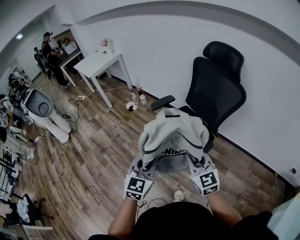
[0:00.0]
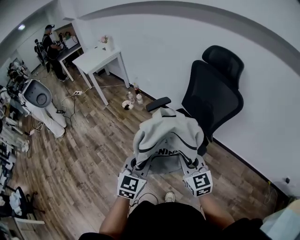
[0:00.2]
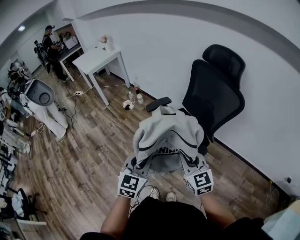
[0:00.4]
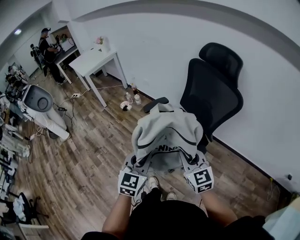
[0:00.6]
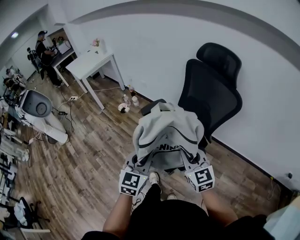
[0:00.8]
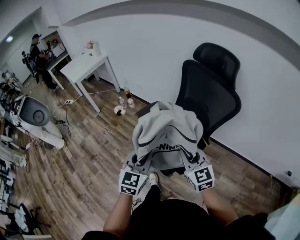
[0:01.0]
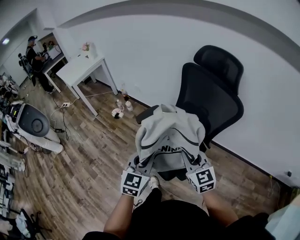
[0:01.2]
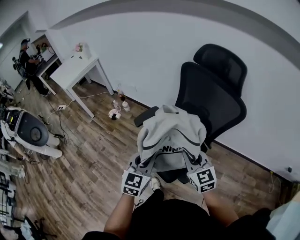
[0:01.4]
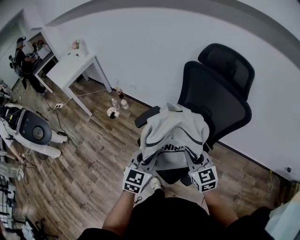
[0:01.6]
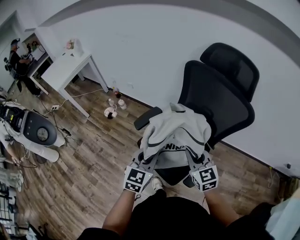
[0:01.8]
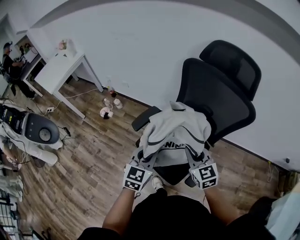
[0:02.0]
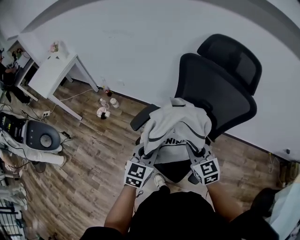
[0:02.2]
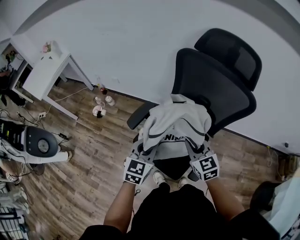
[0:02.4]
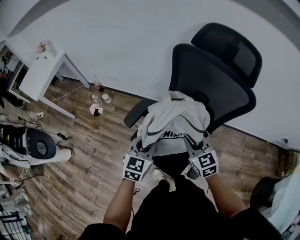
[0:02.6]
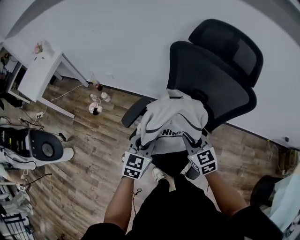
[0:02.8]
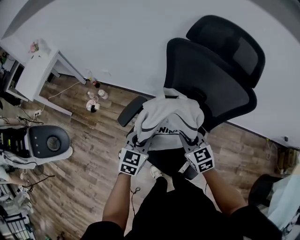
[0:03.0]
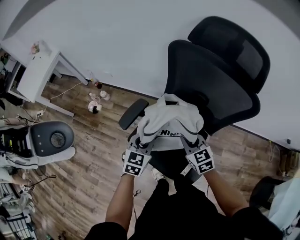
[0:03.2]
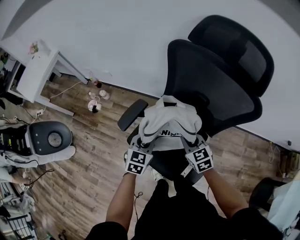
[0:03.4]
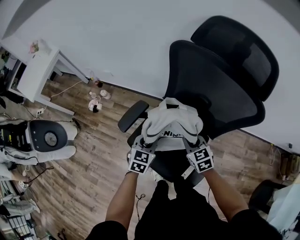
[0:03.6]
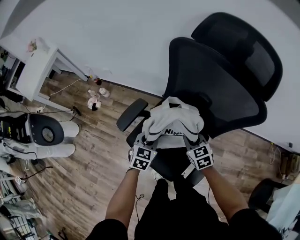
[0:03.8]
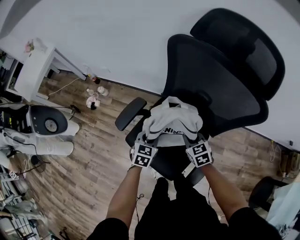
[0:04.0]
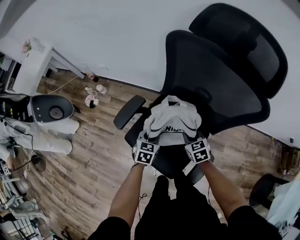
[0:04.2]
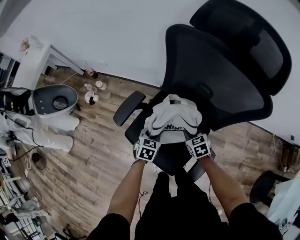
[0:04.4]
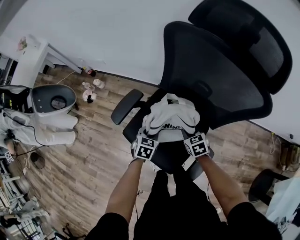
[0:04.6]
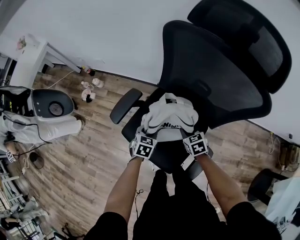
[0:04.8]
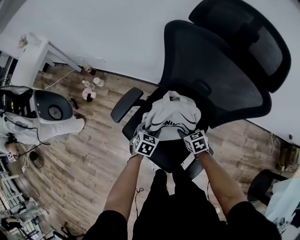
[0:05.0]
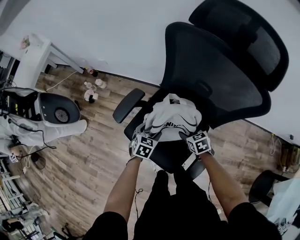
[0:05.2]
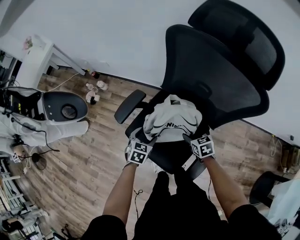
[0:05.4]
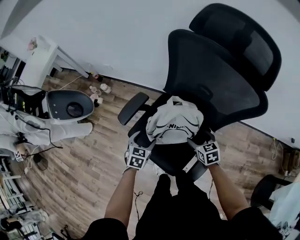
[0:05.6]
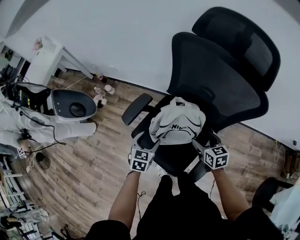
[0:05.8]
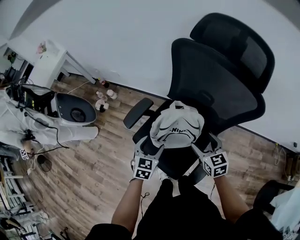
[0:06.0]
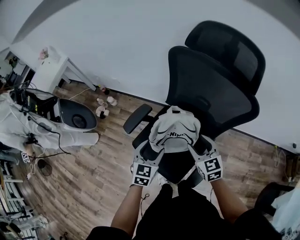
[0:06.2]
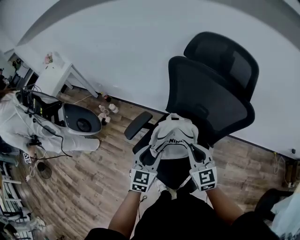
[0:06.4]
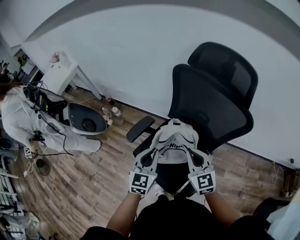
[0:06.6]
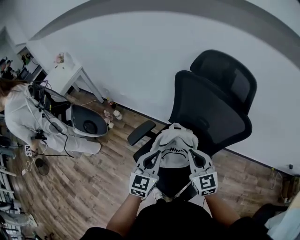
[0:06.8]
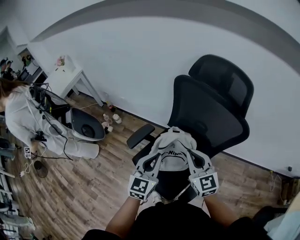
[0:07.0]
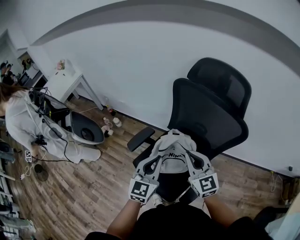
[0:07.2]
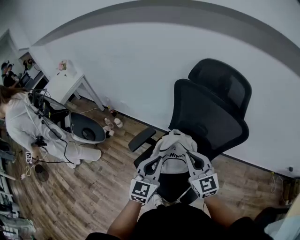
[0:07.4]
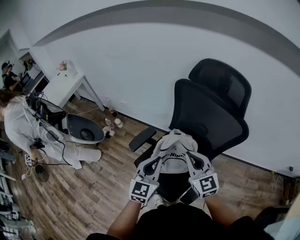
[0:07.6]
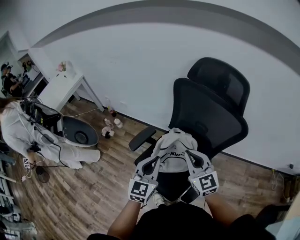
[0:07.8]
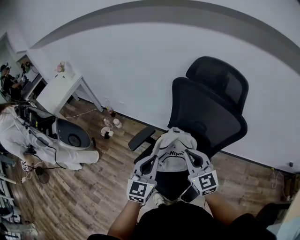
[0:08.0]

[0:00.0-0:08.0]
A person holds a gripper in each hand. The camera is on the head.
0:00.0 to 0:01.6: Both grippers travel together forward, about 25 cm.
0:01.6 to 0:03.2: Both grippers move forward and downward, some 20 cm.
0:03.2 to 0:04.8: The grippers both shift downward by roughly 15 cm. The right gripper rotates some 20 degrees.
0:04.8 to 0:06.4: The two grippers go some 25 cm upward. The left gripper turns by roughly 30 degrees, and opens, then closes again; the right gripper angles its fingers upward, by roughly 30 degrees, and opens and closes again.
0:06.4 to 0:08.0: Both grippers move upward, approximately 10 cm. The left gripper closes up.

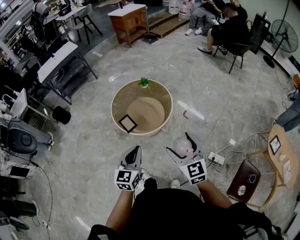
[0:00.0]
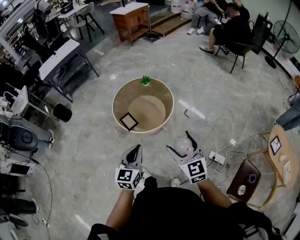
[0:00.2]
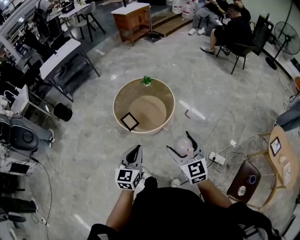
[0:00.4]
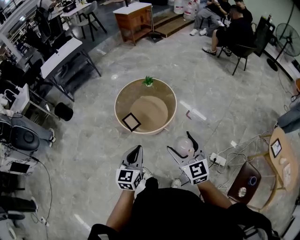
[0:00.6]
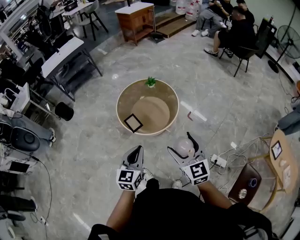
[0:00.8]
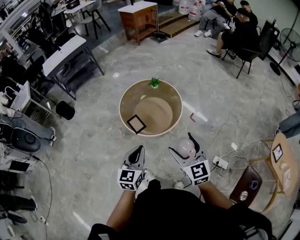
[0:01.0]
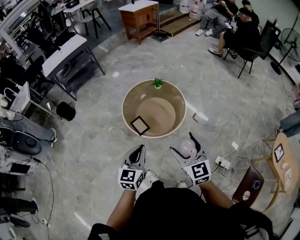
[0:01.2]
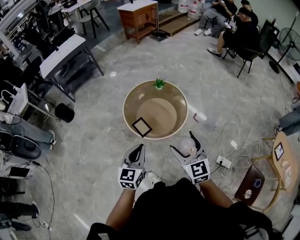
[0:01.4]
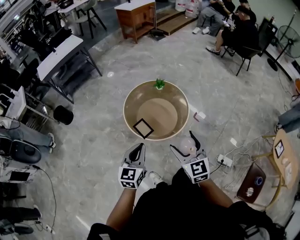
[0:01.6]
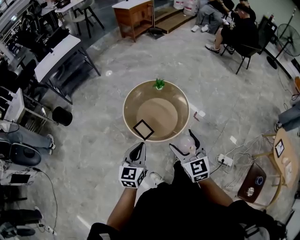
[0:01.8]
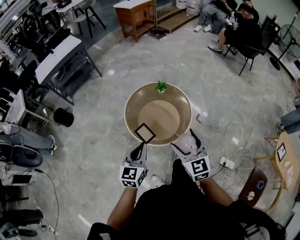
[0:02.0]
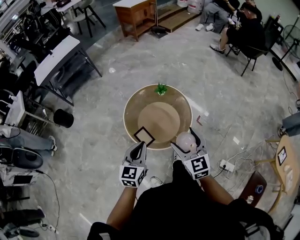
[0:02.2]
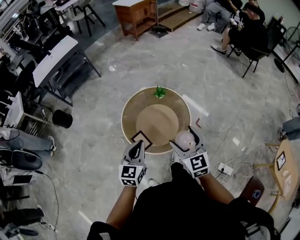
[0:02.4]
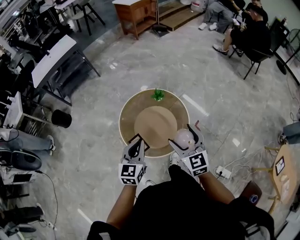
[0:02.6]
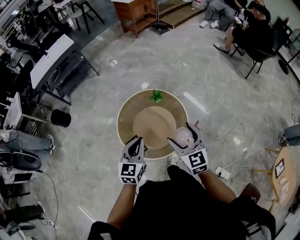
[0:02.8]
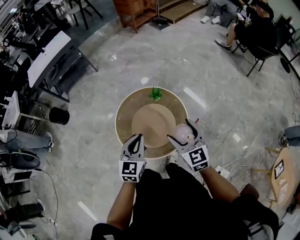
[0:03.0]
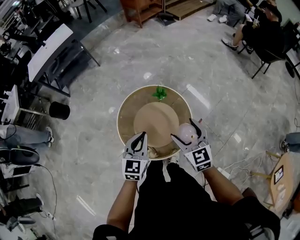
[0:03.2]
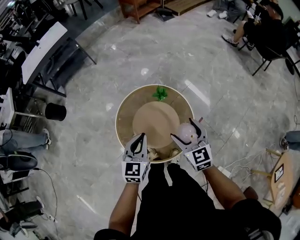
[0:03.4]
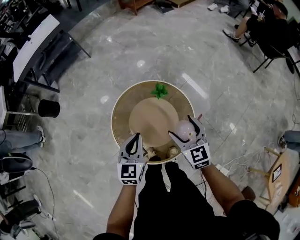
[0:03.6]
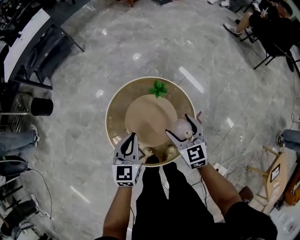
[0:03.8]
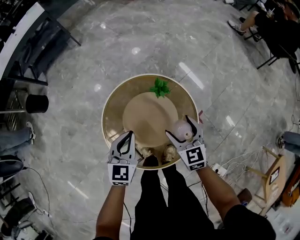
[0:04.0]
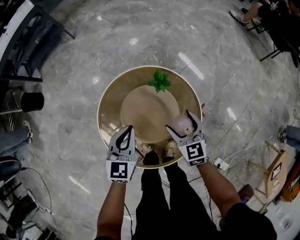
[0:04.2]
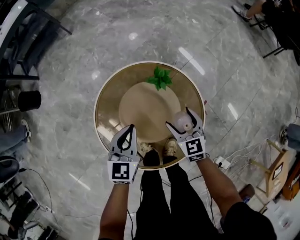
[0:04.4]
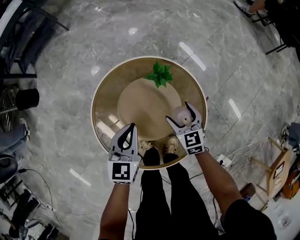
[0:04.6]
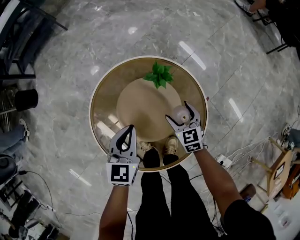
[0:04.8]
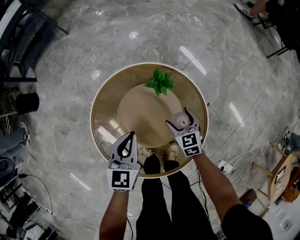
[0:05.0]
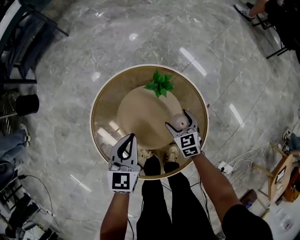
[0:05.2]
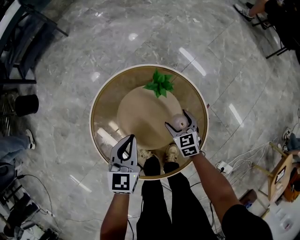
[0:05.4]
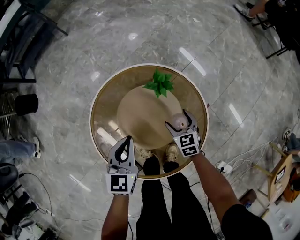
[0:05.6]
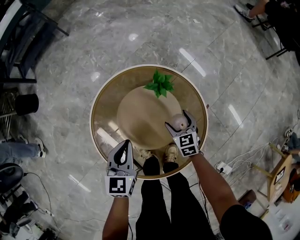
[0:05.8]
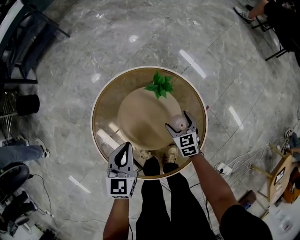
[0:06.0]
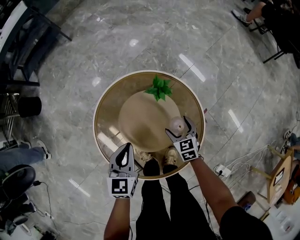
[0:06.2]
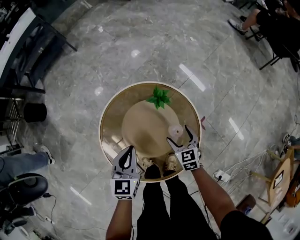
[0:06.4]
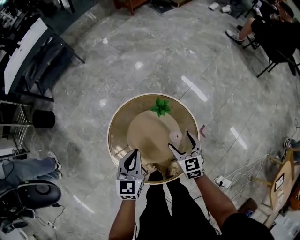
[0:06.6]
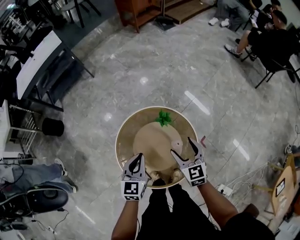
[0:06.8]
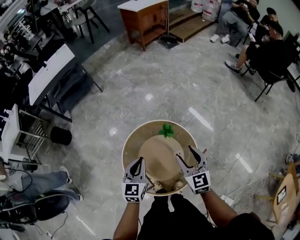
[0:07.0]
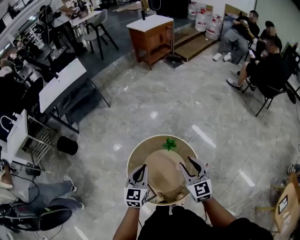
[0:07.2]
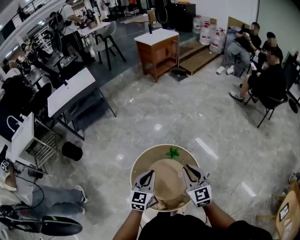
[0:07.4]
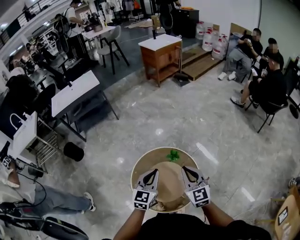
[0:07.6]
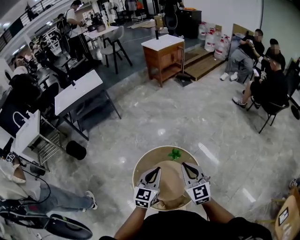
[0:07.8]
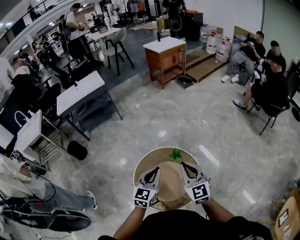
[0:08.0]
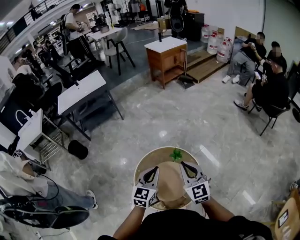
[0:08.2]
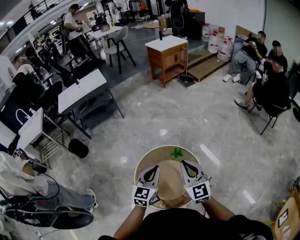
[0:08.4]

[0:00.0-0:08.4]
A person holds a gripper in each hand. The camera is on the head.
0:00.0 to 0:01.4: The two grippers go approximately 15 cm to the left and forward.
0:01.4 to 0:02.8: The grippers both shift forward by about 25 cm.
0:02.8 to 0:04.2: The grippers both shift downward and forward by about 30 cm.
0:04.2 to 0:05.6: The left gripper heads downward, covering approximately 10 cm. Meanwhile the right gripper moves downward, roughly 20 cm.
0:05.6 to 0:07.0: The left gripper is displaced upward by roughly 20 cm. Meanwhile the right gripper travels upward by about 40 cm, rotates approximately 30 degrees, and closes its fingers.
0:07.0 to 0:08.4: The grippers both shift upward by about 15 cm. The right gripper closes up.

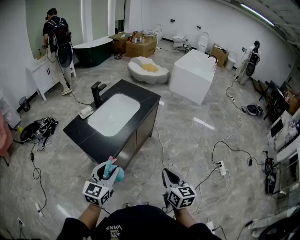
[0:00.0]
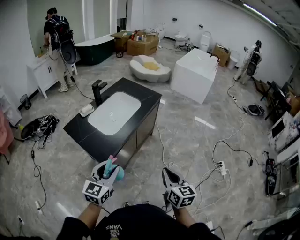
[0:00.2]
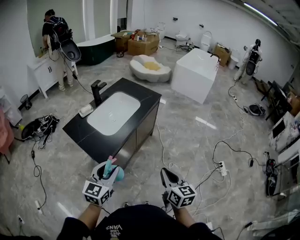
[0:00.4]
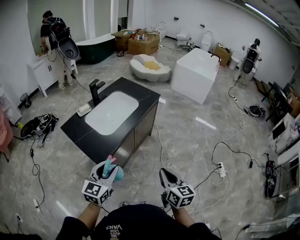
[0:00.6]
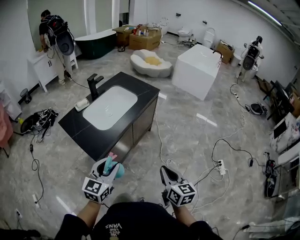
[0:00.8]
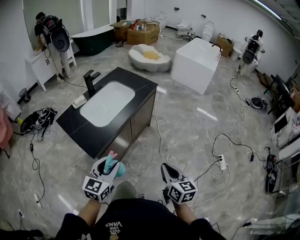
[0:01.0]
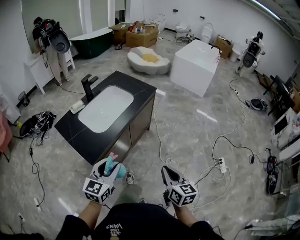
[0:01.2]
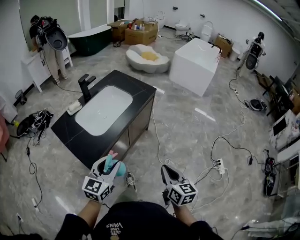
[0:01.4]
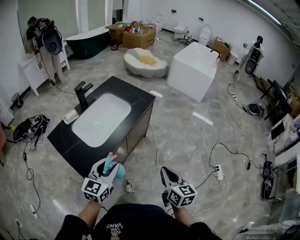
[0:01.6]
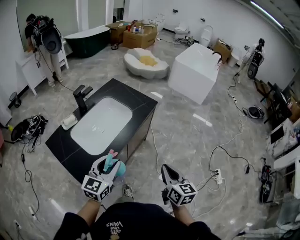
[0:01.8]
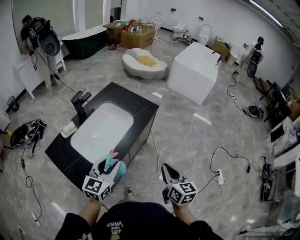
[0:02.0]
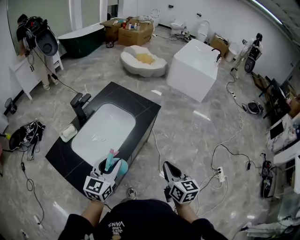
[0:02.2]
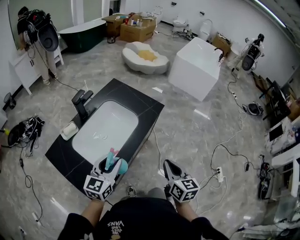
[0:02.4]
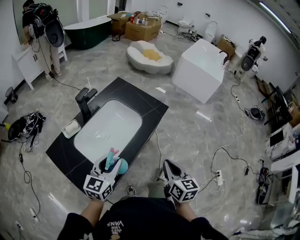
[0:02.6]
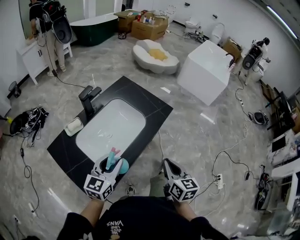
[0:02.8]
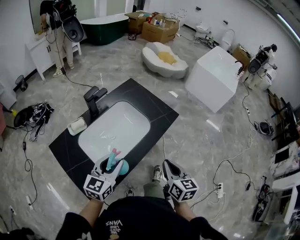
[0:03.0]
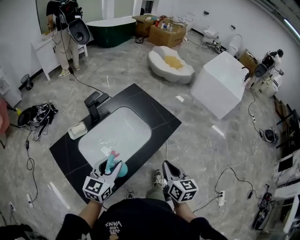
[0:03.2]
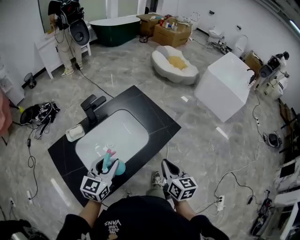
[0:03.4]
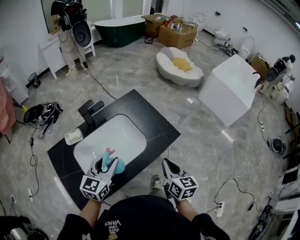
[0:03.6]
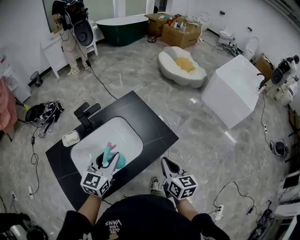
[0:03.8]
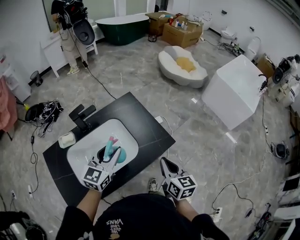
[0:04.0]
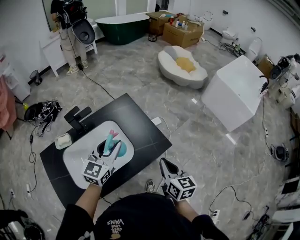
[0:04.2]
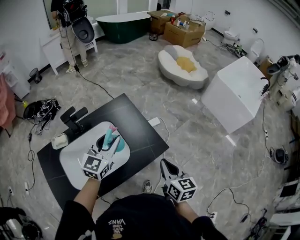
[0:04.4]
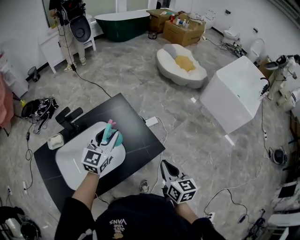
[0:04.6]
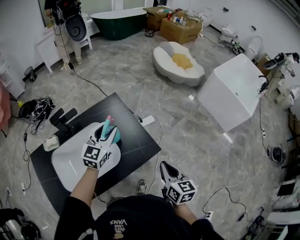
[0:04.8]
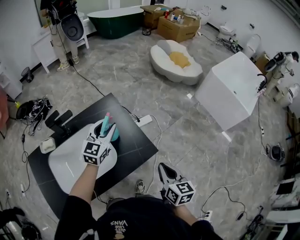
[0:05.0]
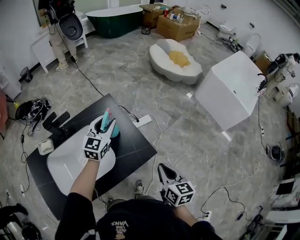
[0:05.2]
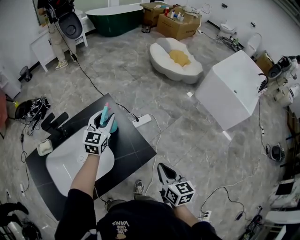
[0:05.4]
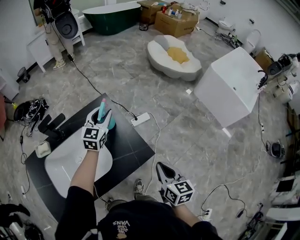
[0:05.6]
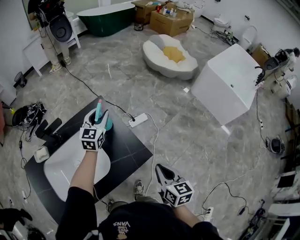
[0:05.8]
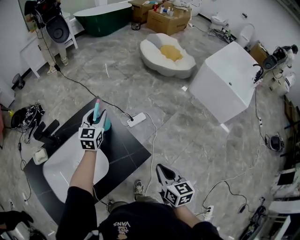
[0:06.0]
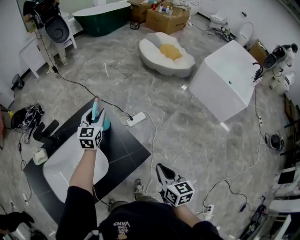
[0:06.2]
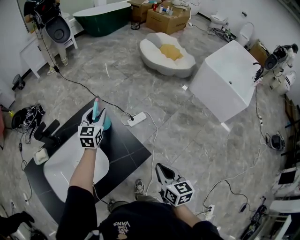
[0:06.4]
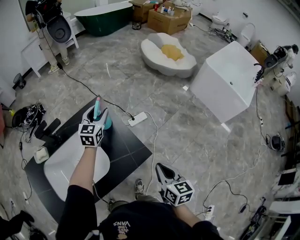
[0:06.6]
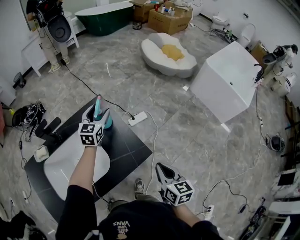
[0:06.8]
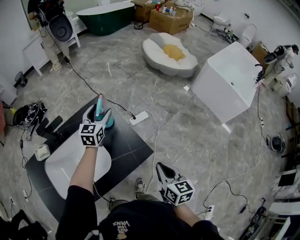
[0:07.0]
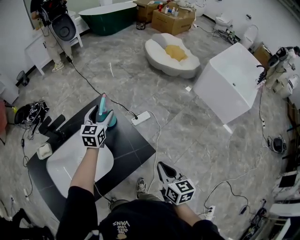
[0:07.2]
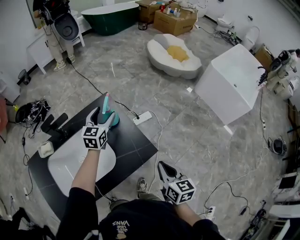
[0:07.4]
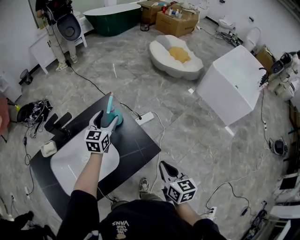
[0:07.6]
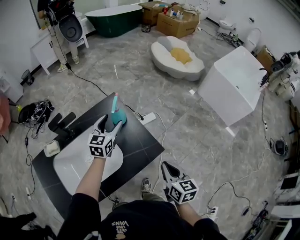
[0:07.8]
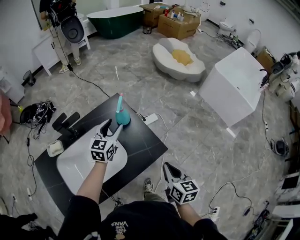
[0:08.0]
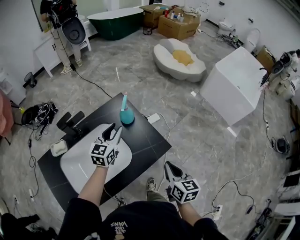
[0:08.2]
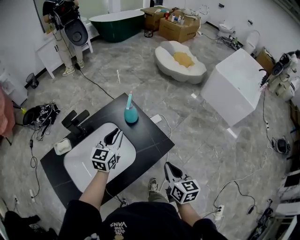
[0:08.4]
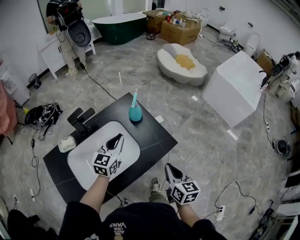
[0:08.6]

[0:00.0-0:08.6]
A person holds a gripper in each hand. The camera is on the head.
0:00.0 to 0:01.4: Both grippers travel together forward and to the right, approximately 10 cm.
0:01.4 to 0:02.8: The two grippers go some 25 cm forward and to the left.
0:02.8 to 0:04.4: Both grippers travel together forward and to the right, roughly 30 cm. The left gripper swivels roughly 20 degrees. The right gripper rotates some 20 degrees.
0:04.4 to 0:05.8: The right gripper moves to the right, some 5 cm; the left gripper travels forward and downward by some 20 cm.
0:05.8 to 0:07.2: The left gripper opens.
0:07.2 to 0:08.6: The right gripper goes some 10 cm to the left and backward. The left gripper shifts about 20 cm backward, and closes.
